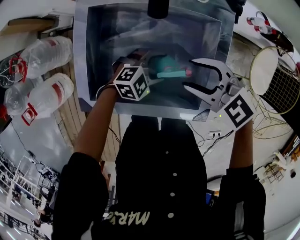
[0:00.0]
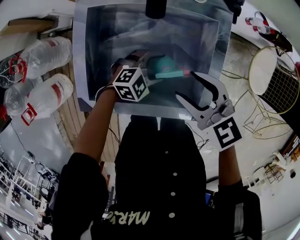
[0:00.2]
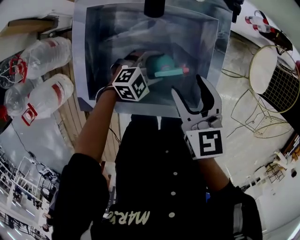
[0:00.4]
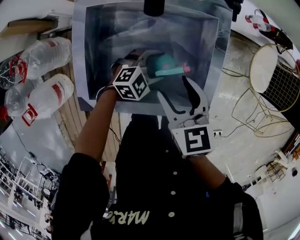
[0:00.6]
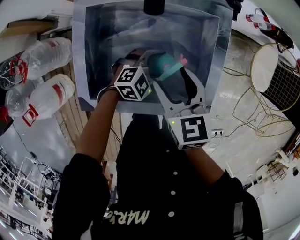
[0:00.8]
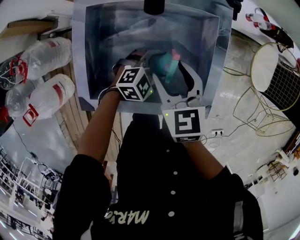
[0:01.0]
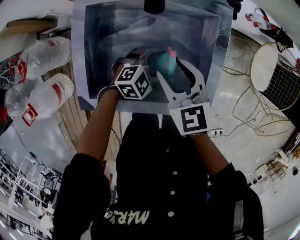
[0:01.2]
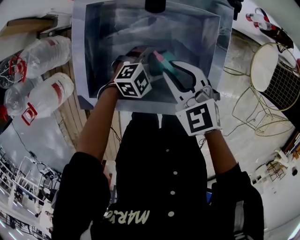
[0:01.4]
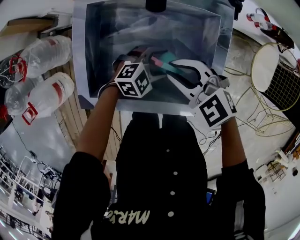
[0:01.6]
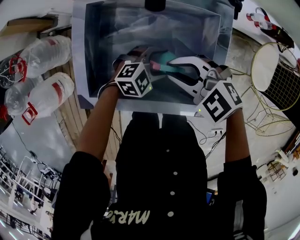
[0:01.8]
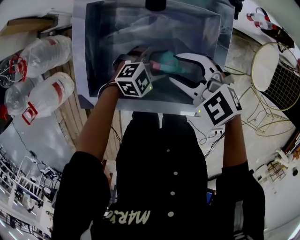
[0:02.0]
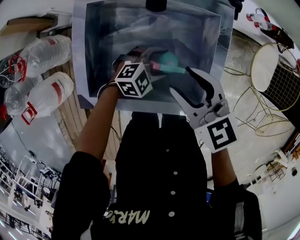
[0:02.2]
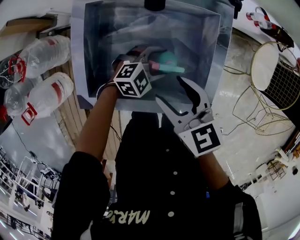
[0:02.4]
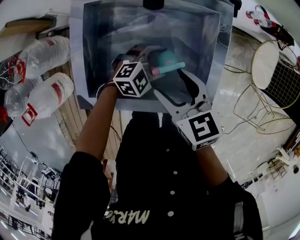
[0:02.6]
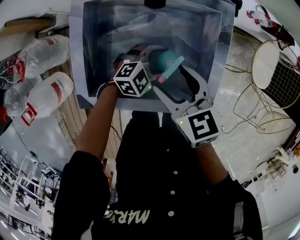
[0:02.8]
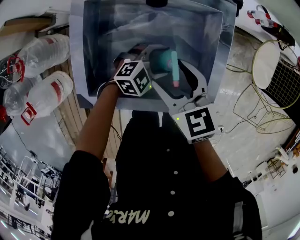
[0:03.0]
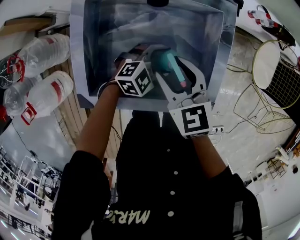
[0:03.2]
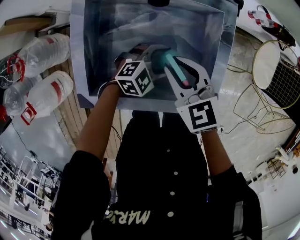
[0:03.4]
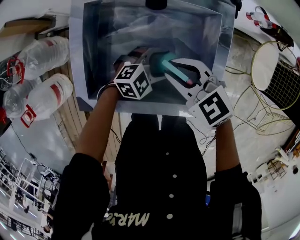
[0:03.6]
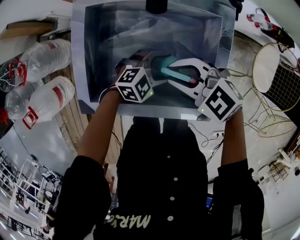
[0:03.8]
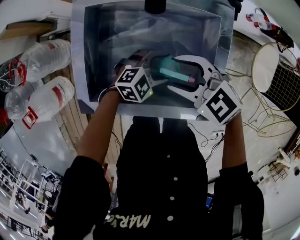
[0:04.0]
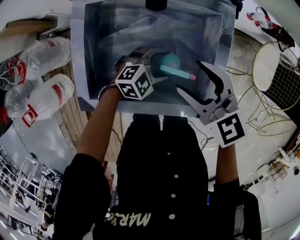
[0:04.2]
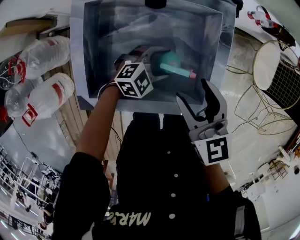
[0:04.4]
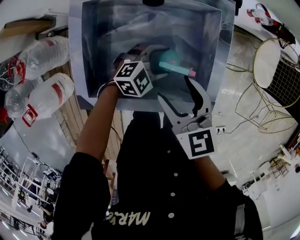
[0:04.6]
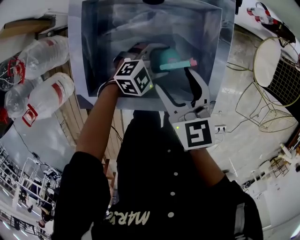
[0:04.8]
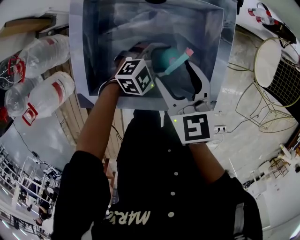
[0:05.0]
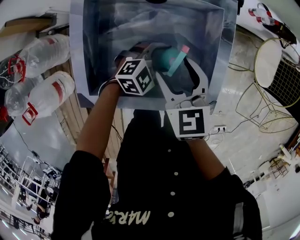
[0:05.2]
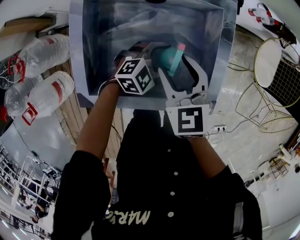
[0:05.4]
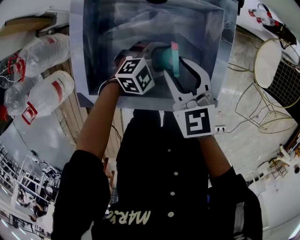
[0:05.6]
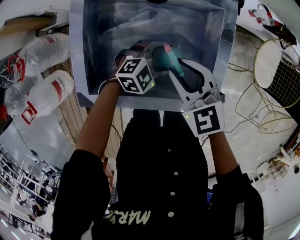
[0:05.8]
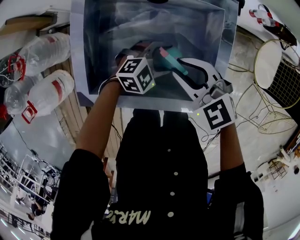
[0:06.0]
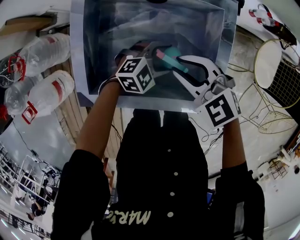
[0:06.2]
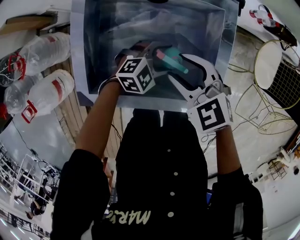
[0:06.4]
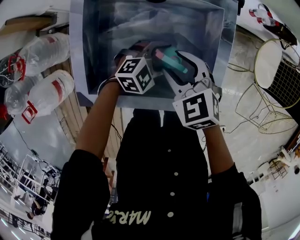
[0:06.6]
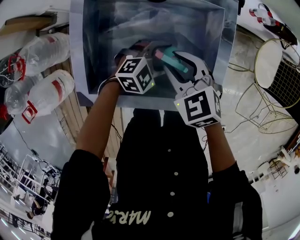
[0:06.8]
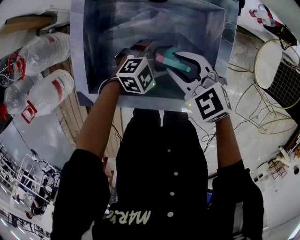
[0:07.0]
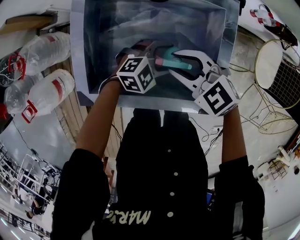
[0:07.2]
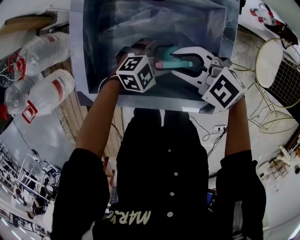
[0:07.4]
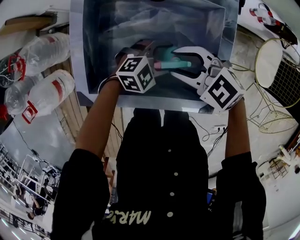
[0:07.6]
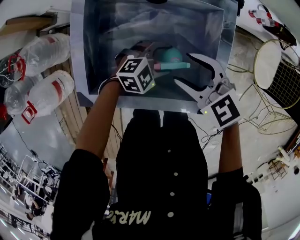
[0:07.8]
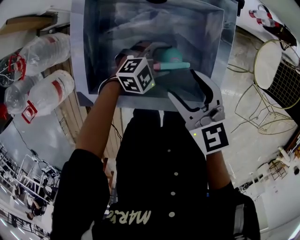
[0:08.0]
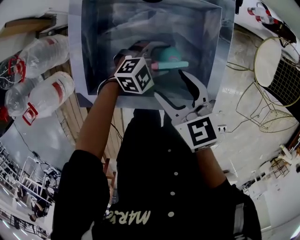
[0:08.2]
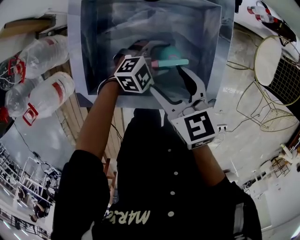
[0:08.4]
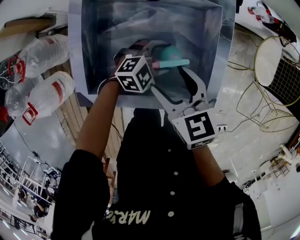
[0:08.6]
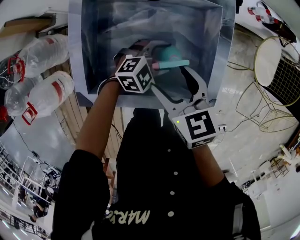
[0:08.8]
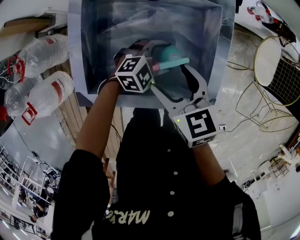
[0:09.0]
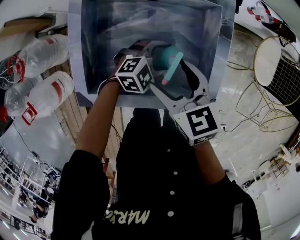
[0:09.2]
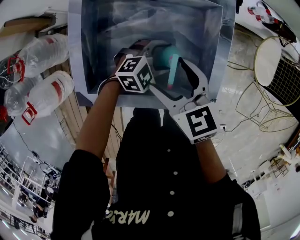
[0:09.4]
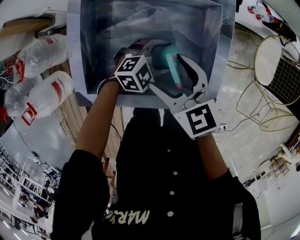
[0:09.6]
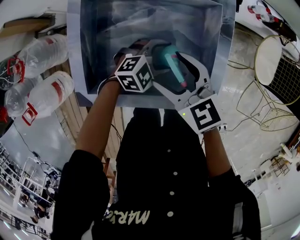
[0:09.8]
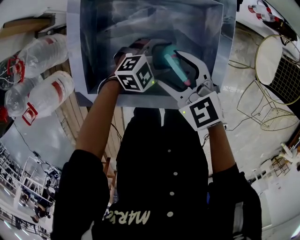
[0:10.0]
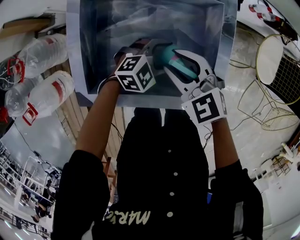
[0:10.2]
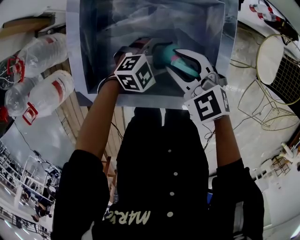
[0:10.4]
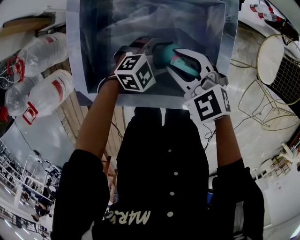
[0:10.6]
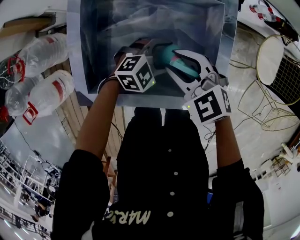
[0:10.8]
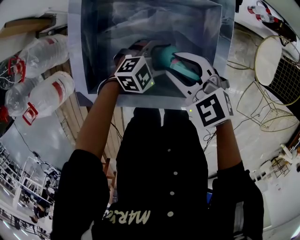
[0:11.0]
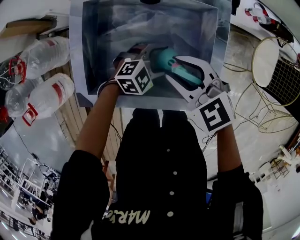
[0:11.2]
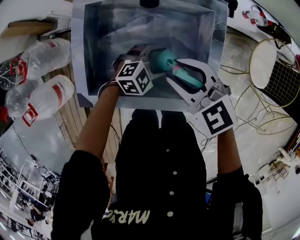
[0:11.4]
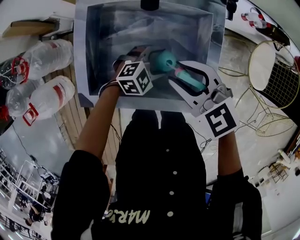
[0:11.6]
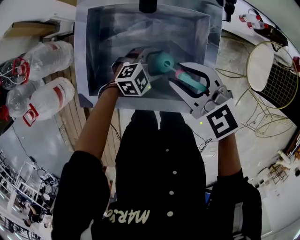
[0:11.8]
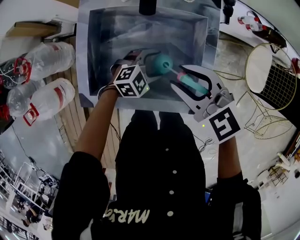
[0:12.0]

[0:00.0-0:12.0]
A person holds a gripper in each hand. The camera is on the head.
0:00.0 to 0:01.6: The right gripper closes up.
0:01.6 to 0:03.0: The right gripper changes its angle by some 40 degrees, and opens.
0:03.0 to 0:04.4: The right gripper changes place by approximately 10 cm, and closes and opens again.
0:04.4 to 0:06.0: The right gripper travels downward by some 5 cm, rotates about 40 degrees, and closes up.
0:07.6 to 0:09.0: The right gripper rotates some 50 degrees, and opens up.
0:09.0 to 0:10.4: The right gripper rotates approximately 40 degrees, and closes its fingers.
0:10.4 to 0:12.0: The right gripper is displaced upward by about 10 cm.

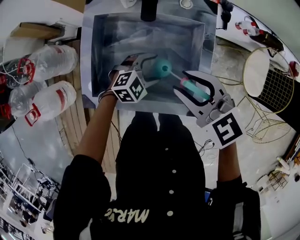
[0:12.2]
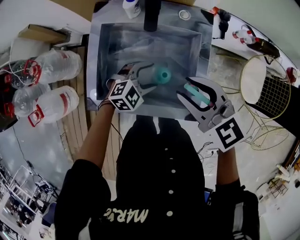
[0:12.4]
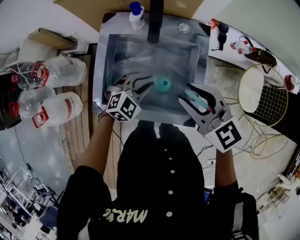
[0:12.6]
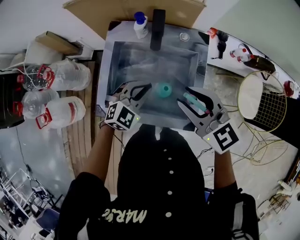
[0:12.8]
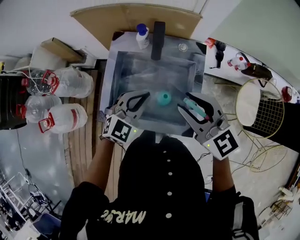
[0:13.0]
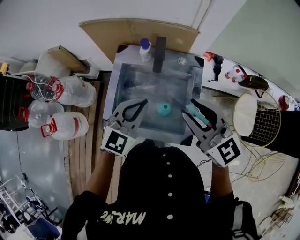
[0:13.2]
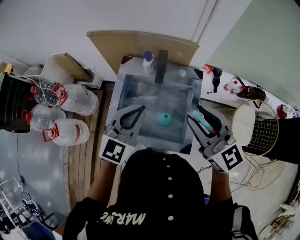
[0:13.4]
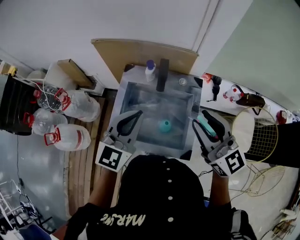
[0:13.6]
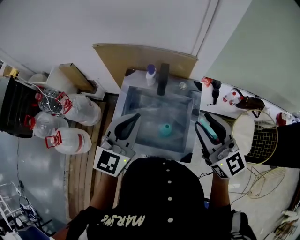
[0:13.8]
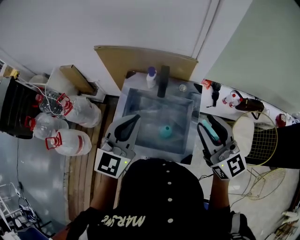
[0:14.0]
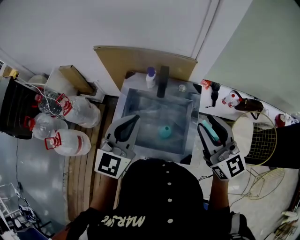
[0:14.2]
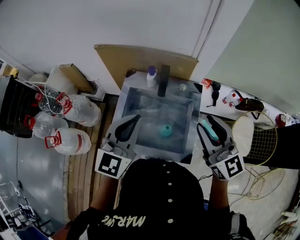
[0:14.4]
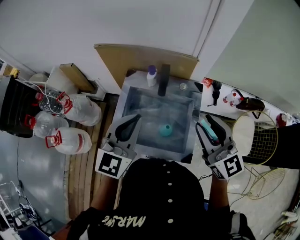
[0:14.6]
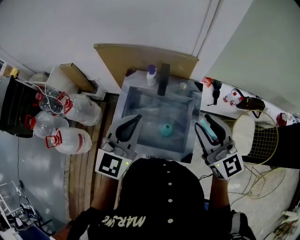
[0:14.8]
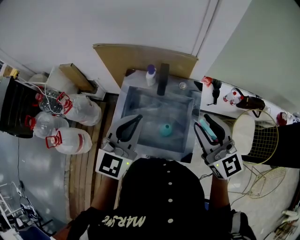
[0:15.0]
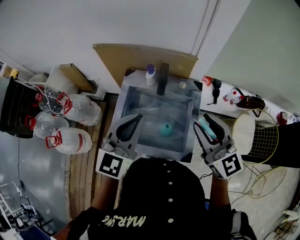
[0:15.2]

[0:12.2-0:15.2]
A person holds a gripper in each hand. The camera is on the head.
0:12.2 to 0:13.8: The left gripper is displaced upward by some 40 cm, tilts its fingers roughly 40 degrees upward, and closes its fingers. Meanwhile the right gripper moves upward, roughly 25 cm, and points its fingers roughly 30 degrees further upward.
0:13.8 to 0:15.2: There are only small adjustments of the grippers.

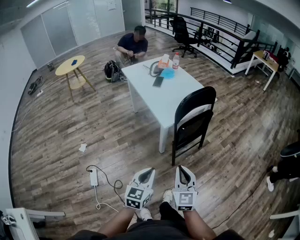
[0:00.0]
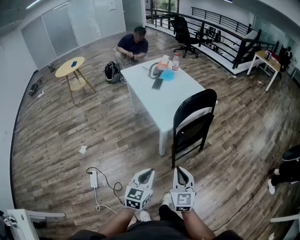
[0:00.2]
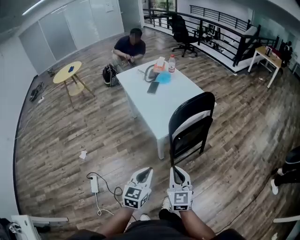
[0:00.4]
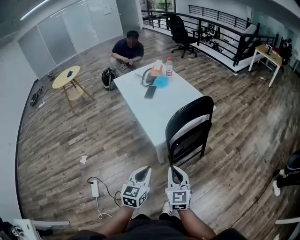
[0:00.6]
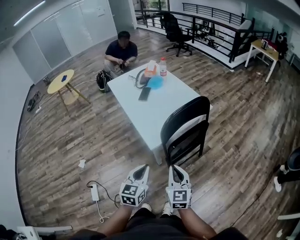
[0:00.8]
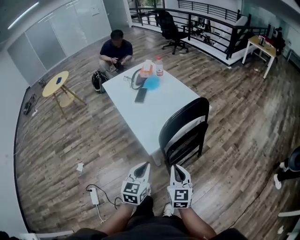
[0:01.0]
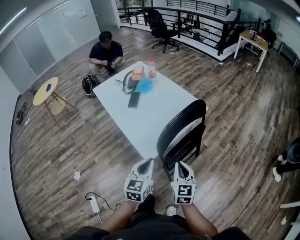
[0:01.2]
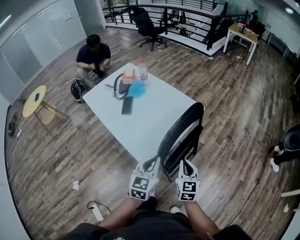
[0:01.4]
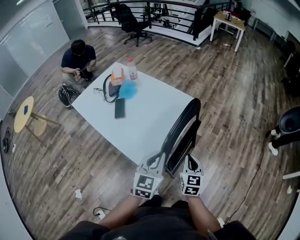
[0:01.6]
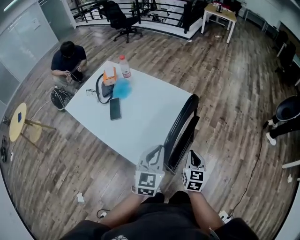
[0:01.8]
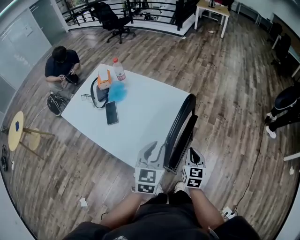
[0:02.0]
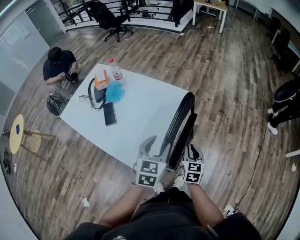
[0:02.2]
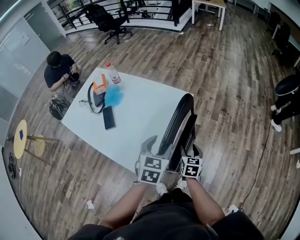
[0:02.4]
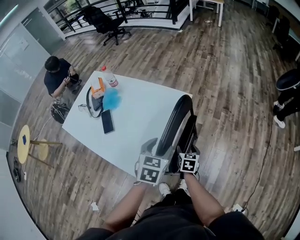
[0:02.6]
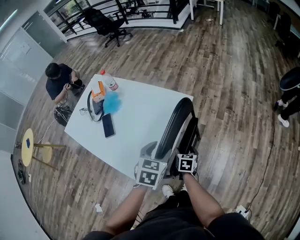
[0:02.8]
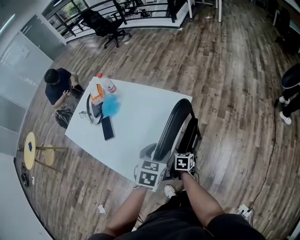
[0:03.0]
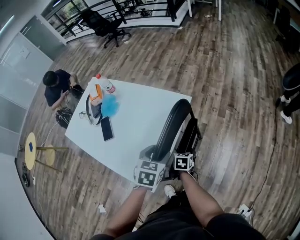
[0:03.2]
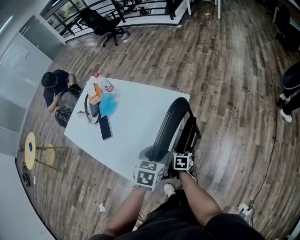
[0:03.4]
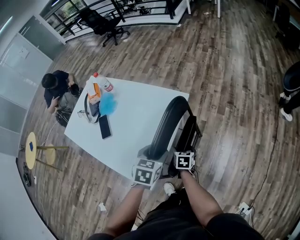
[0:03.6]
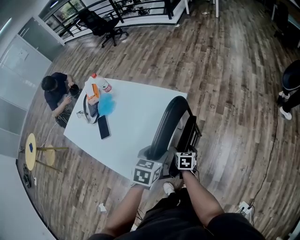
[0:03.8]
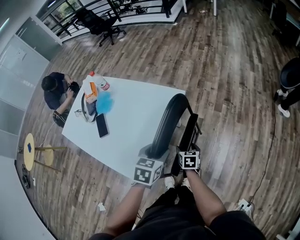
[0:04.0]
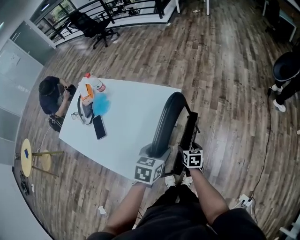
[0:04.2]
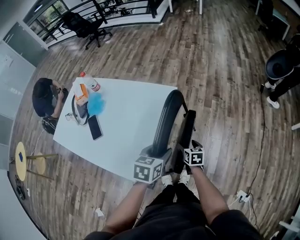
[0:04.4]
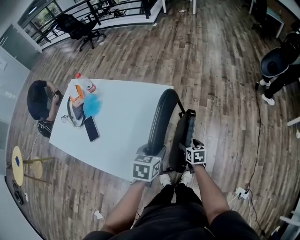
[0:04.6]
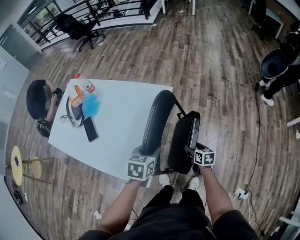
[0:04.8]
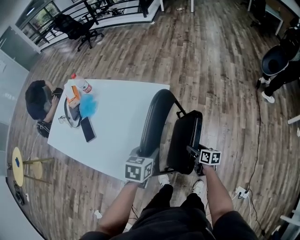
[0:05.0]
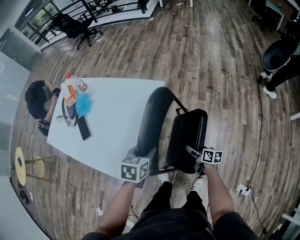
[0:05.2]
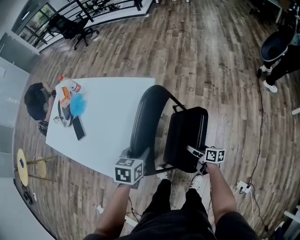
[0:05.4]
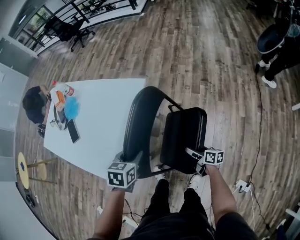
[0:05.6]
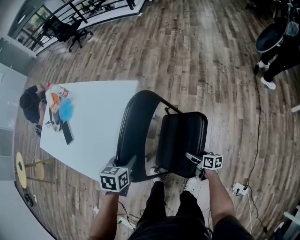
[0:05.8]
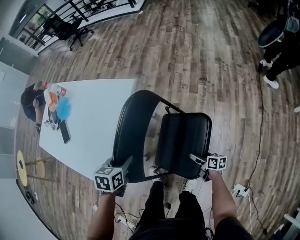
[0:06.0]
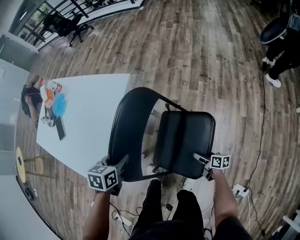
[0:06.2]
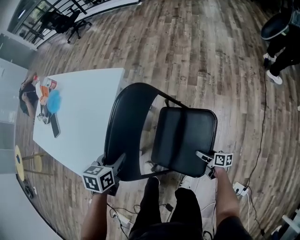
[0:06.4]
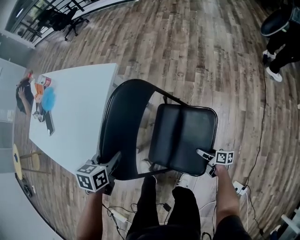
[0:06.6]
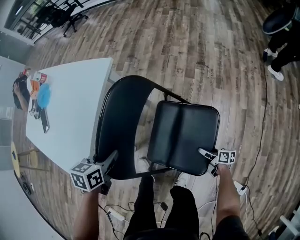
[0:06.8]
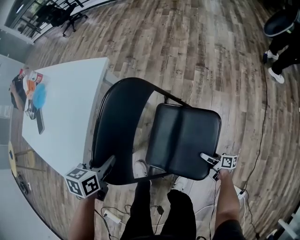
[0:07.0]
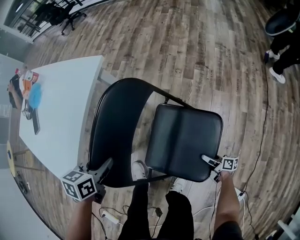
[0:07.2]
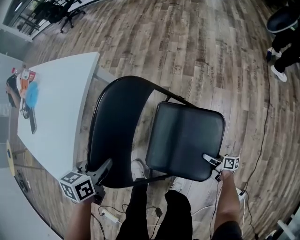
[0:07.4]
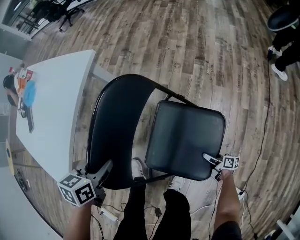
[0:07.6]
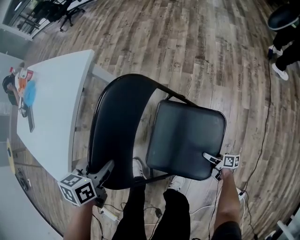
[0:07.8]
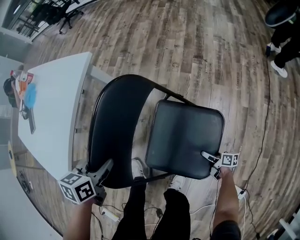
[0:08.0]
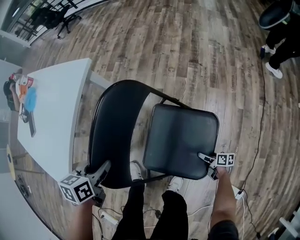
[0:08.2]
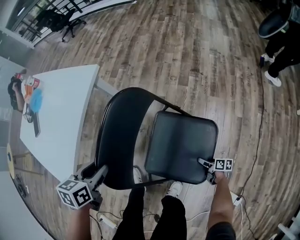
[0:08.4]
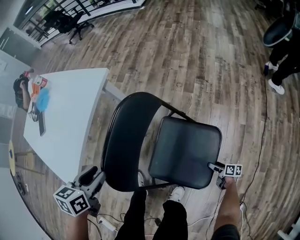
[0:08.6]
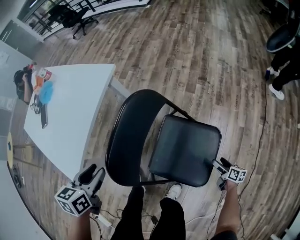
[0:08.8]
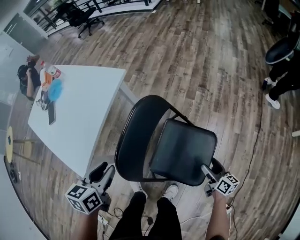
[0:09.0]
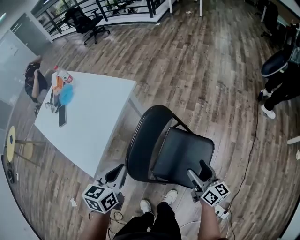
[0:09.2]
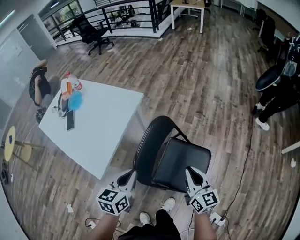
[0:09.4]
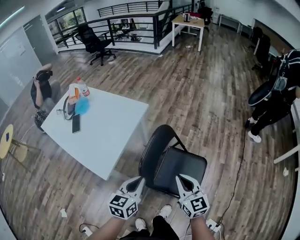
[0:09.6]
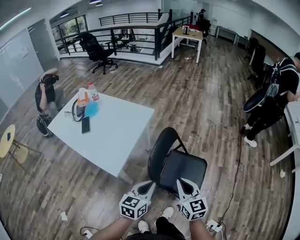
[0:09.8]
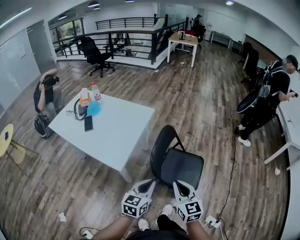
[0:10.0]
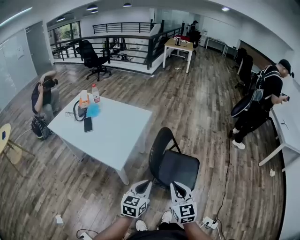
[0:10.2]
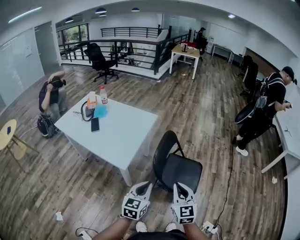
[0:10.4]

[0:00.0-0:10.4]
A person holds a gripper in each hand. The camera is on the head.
0:00.0 to 0:01.4: Both grippers move forward, about 40 cm. The right gripper turns by roughly 30 degrees.
0:01.4 to 0:03.0: The left gripper heads forward, covering some 20 cm, rotates approximately 30 degrees, and opens its fingers, while the right gripper moves downward and forward, roughly 25 cm, angles its fingers downward, by approximately 30 degrees, and opens up.
0:03.0 to 0:04.4: The right gripper heads to the right, covering roughly 5 cm, while the left gripper shifts by approximately 5 cm.
0:04.4 to 0:06.0: The right gripper shifts some 30 cm to the right, downward and backward, and swivels approximately 40 degrees. The left gripper moves downward and to the right, some 10 cm.
0:06.0 to 0:07.4: The right gripper heads downward and to the right, covering approximately 25 cm; the left gripper heads downward and to the right, covering approximately 15 cm.
0:07.4 to 0:09.0: The right gripper moves upward, approximately 25 cm, and swivels roughly 30 degrees; the left gripper travels upward by about 15 cm.
0:09.0 to 0:10.4: The left gripper goes about 35 cm backward and upward, rotates roughly 30 degrees, and closes up, while the right gripper heads upward, to the left and backward, covering roughly 60 cm, rolls counterclockwise, seen from behind, by roughly 50 degrees, and closes.
